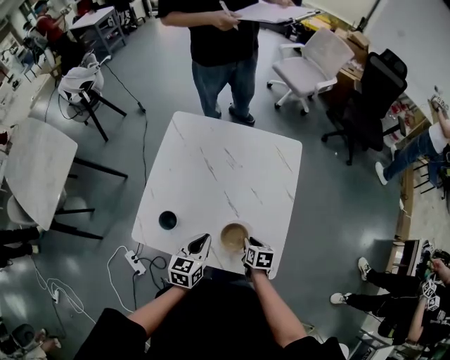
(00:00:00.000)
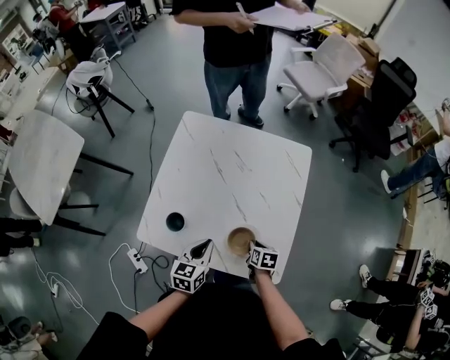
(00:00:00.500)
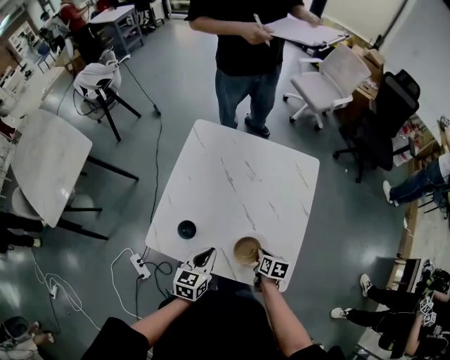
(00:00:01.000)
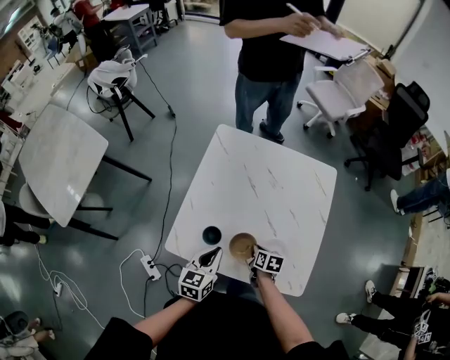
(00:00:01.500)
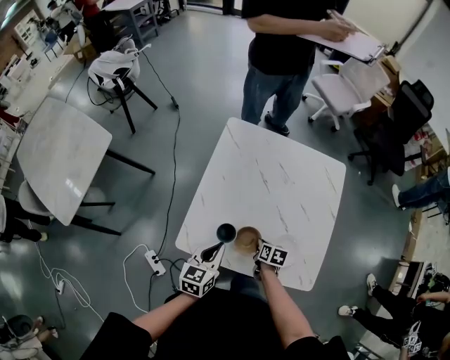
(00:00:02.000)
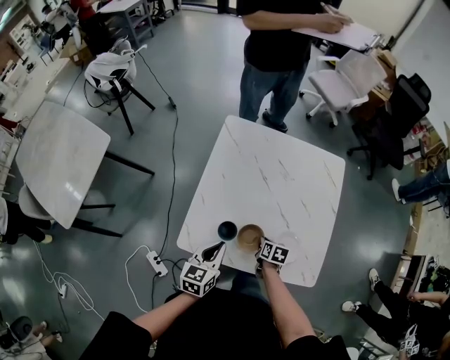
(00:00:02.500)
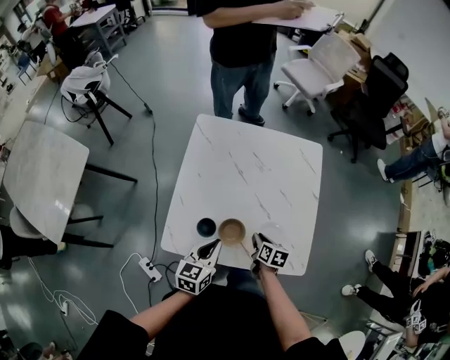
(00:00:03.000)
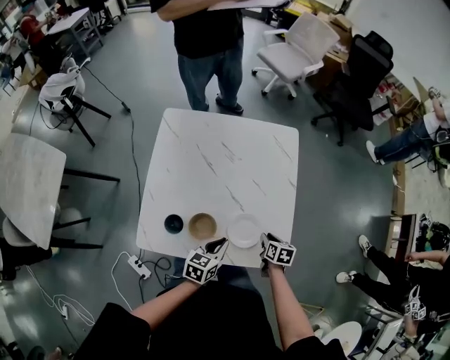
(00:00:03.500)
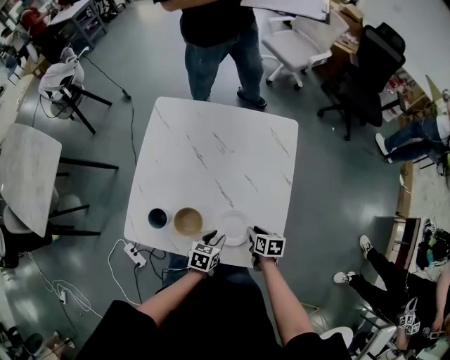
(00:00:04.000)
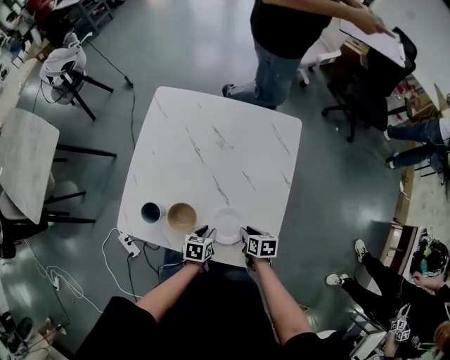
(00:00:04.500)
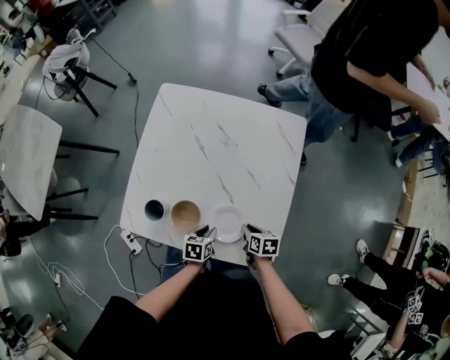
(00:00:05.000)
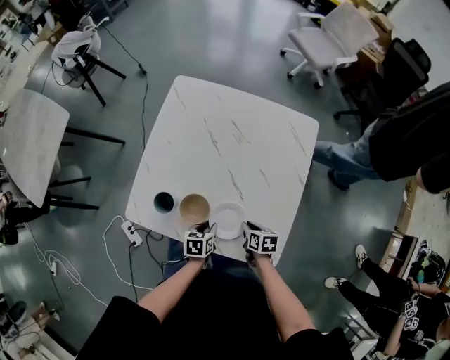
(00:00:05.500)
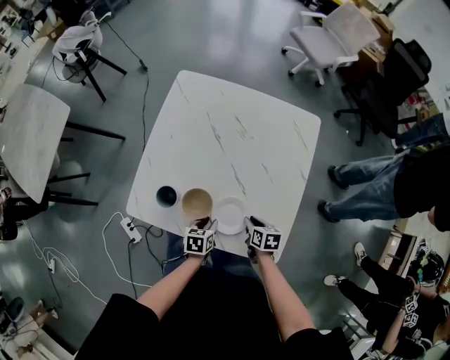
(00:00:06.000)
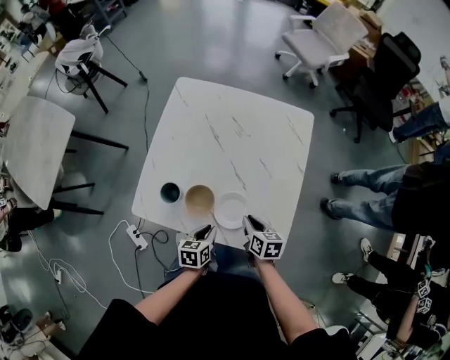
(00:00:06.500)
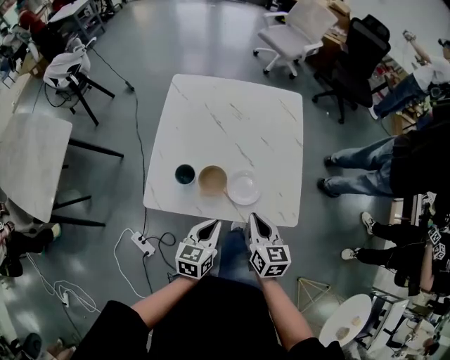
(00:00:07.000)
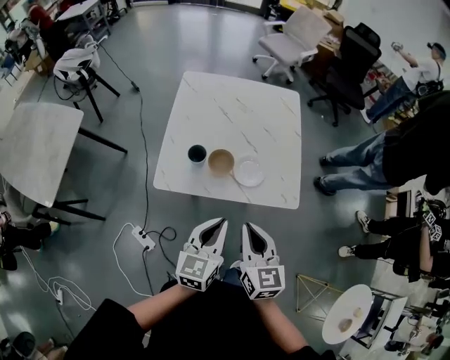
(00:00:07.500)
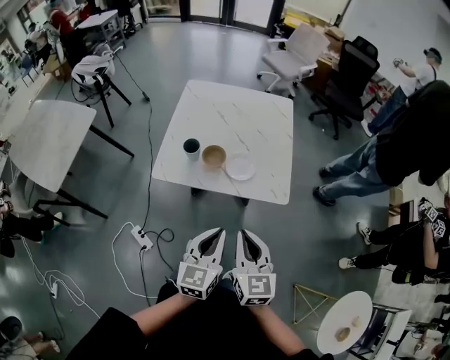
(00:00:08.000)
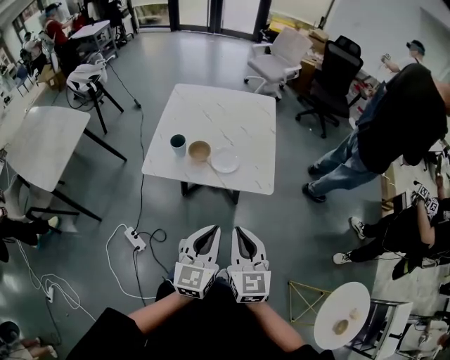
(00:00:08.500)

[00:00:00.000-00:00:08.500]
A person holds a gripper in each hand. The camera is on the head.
00:00:00.000 to 00:00:02.000: The grippers both shift to the left by some 20 cm.
00:00:02.000 to 00:00:04.000: The left gripper shifts approximately 30 cm to the right and downward, turns by roughly 30 degrees, and opens its fingers, while the right gripper is displaced to the right by about 20 cm, and opens.
00:00:04.000 to 00:00:06.500: The left gripper shifts approximately 10 cm to the left, and rotates about 20 degrees. Meanwhile the right gripper goes roughly 10 cm to the left and upward.
00:00:06.500 to 00:00:08.500: The two grippers go some 50 cm backward and upward. The right gripper tilts its fingers roughly 30 degrees upward; the left gripper angles its fingers upward, by roughly 40 degrees.

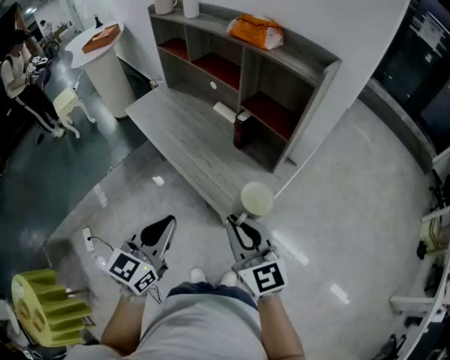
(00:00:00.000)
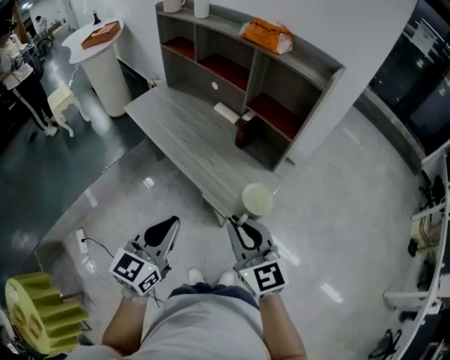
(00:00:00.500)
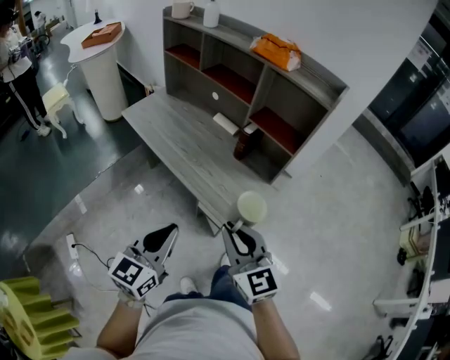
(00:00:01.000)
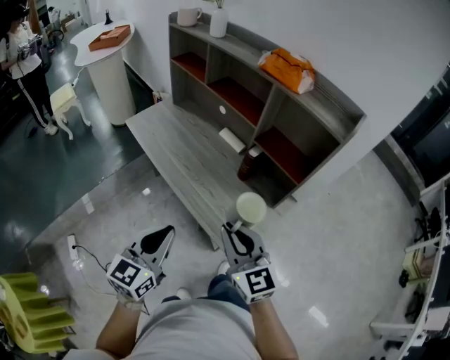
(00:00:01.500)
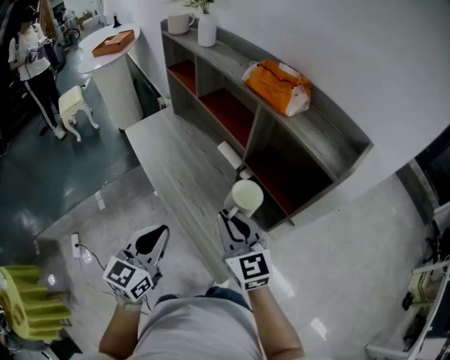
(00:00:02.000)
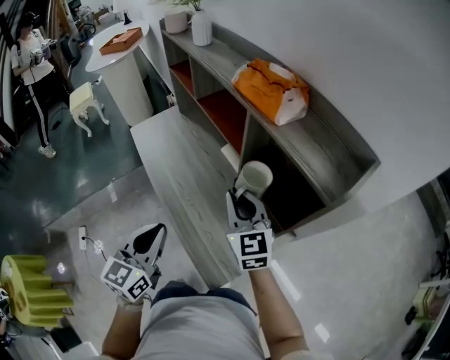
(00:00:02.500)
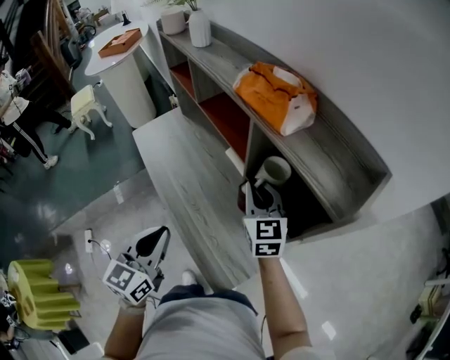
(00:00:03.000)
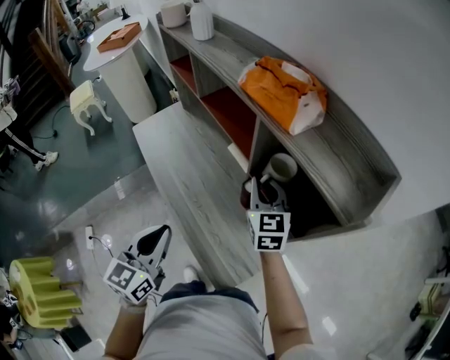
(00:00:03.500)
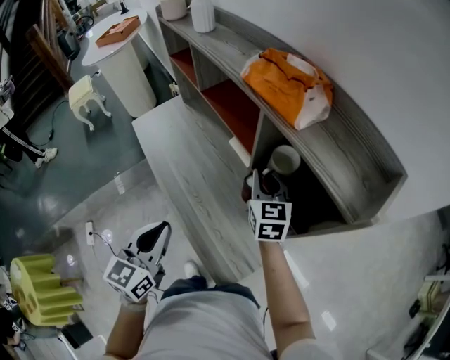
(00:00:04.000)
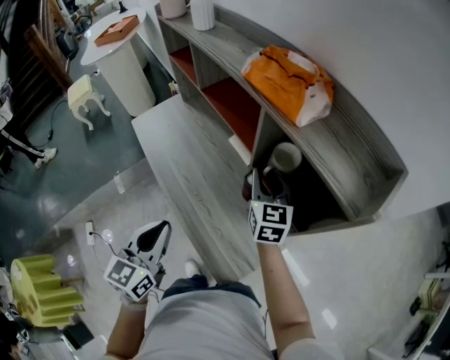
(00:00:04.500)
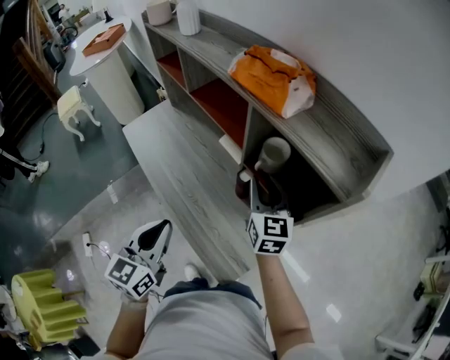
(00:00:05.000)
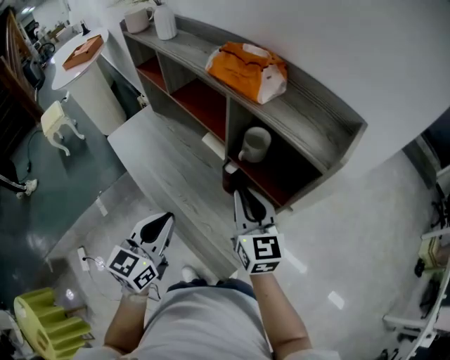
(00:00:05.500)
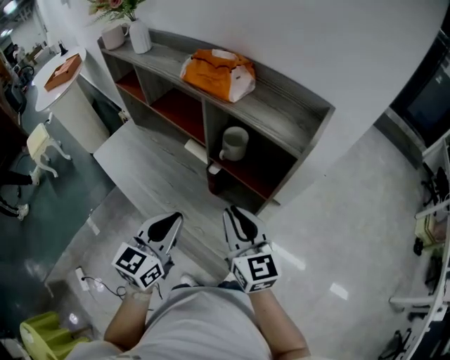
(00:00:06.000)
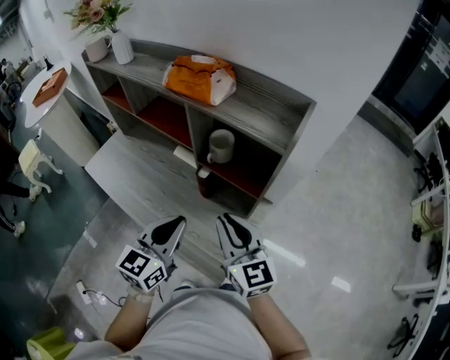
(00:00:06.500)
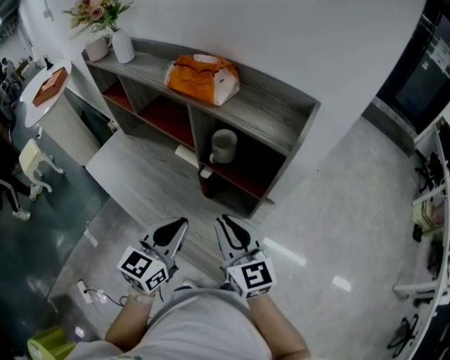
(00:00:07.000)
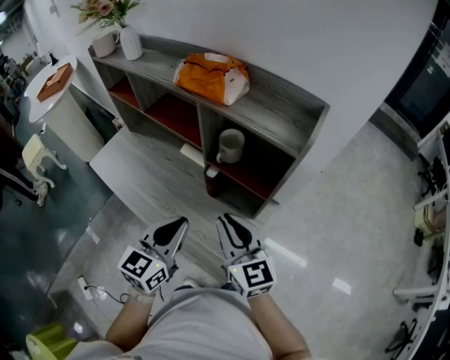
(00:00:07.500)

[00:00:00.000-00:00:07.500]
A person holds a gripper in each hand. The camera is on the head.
00:00:00.000 to 00:00:02.000: The grippers both shift forward by roughly 20 cm.
00:00:02.000 to 00:00:04.000: The right gripper heads forward and to the right, covering roughly 20 cm. Meanwhile the left gripper travels forward by roughly 5 cm.
00:00:04.000 to 00:00:05.500: The right gripper moves backward and upward, roughly 15 cm.
00:00:05.500 to 00:00:07.500: The left gripper moves to the right, some 5 cm; the right gripper goes about 10 cm backward.

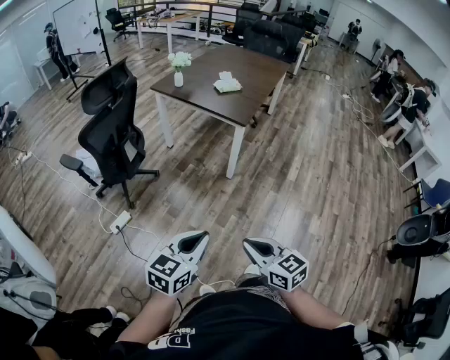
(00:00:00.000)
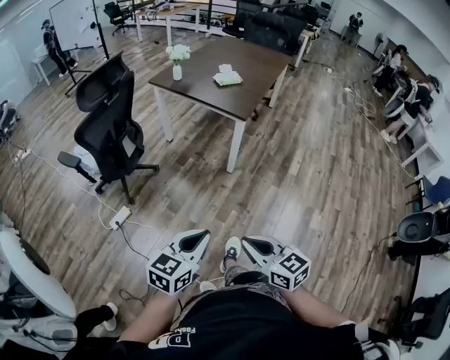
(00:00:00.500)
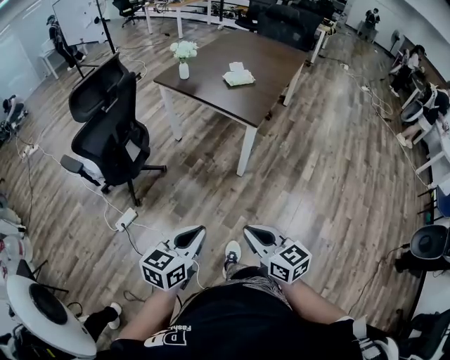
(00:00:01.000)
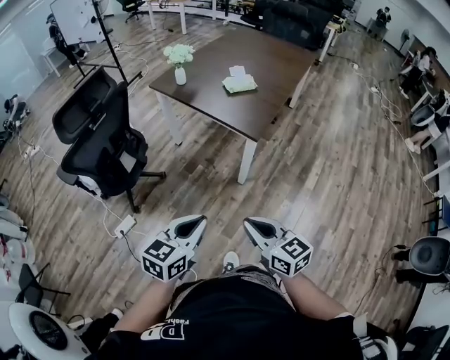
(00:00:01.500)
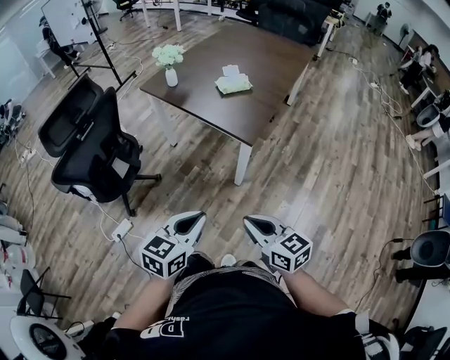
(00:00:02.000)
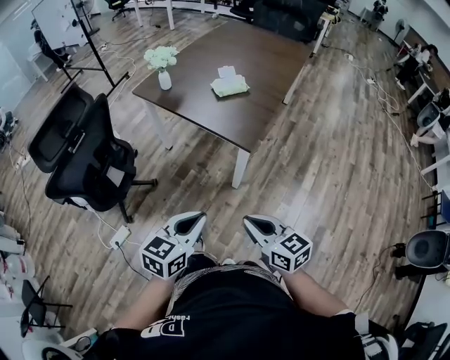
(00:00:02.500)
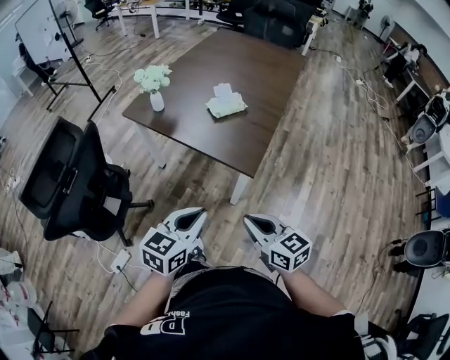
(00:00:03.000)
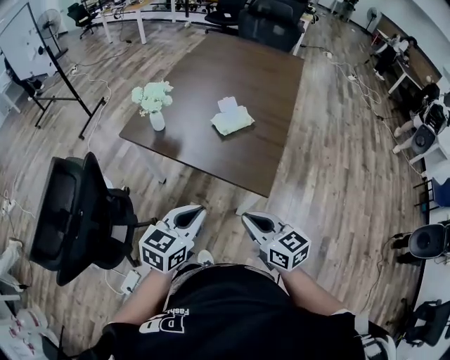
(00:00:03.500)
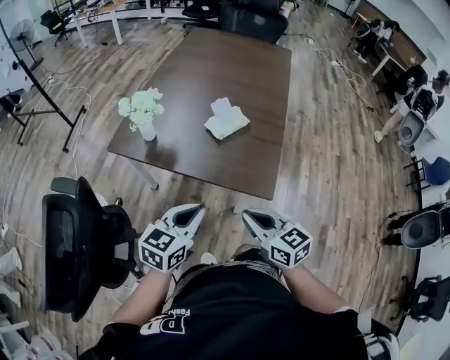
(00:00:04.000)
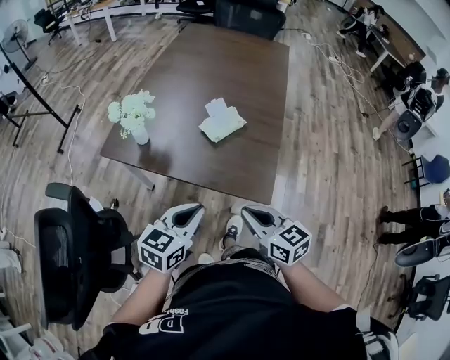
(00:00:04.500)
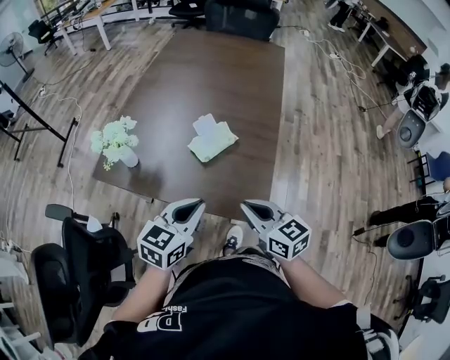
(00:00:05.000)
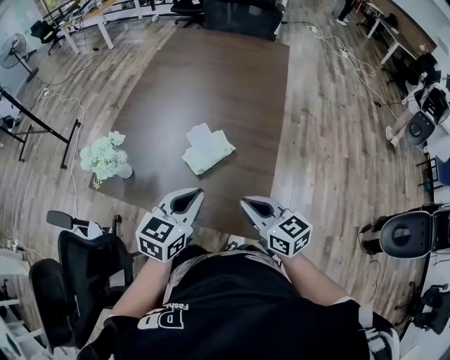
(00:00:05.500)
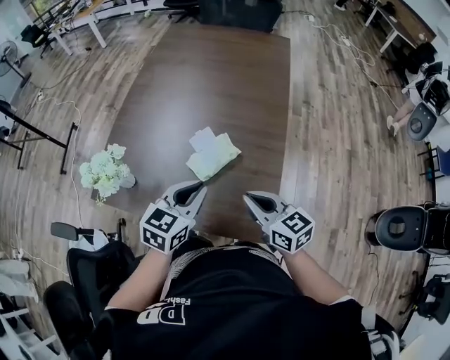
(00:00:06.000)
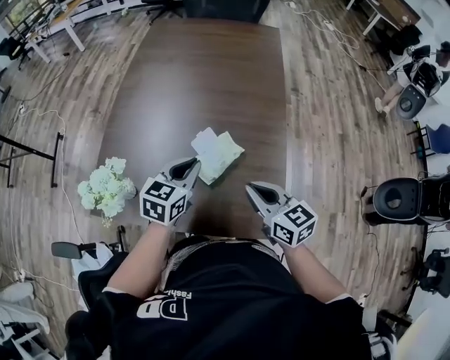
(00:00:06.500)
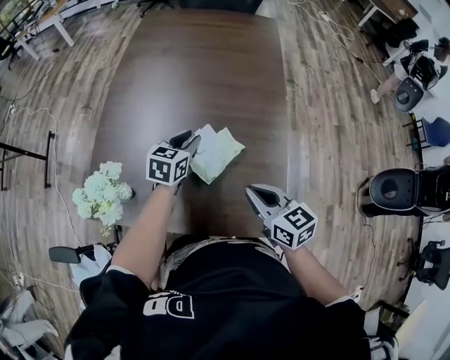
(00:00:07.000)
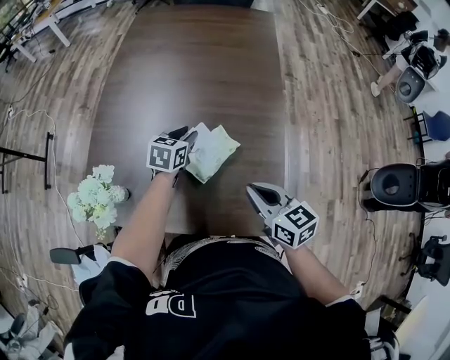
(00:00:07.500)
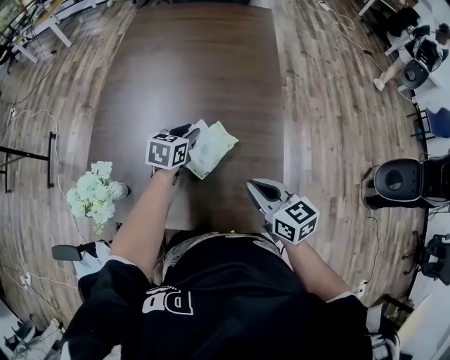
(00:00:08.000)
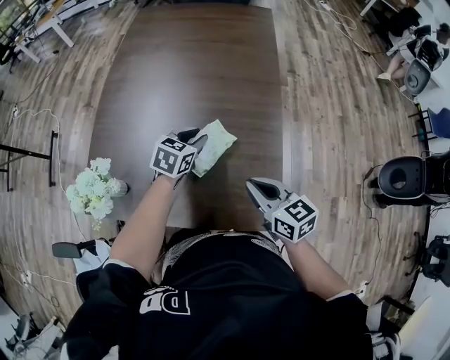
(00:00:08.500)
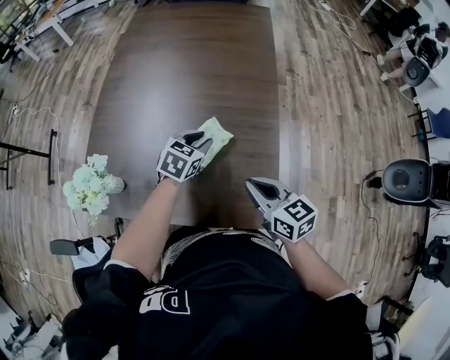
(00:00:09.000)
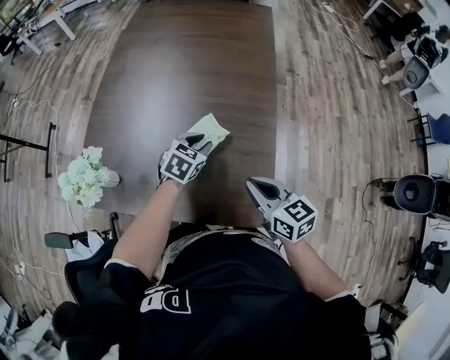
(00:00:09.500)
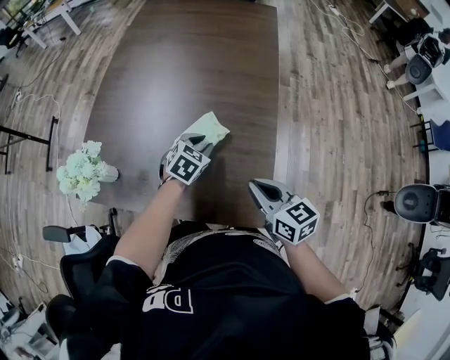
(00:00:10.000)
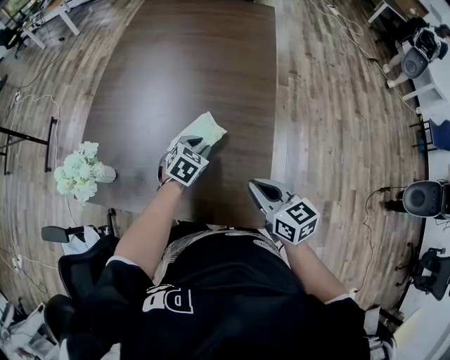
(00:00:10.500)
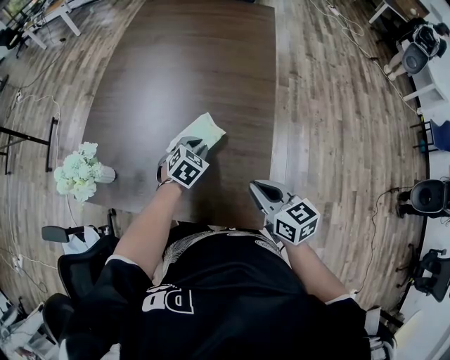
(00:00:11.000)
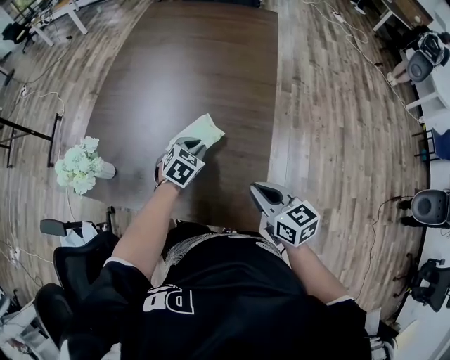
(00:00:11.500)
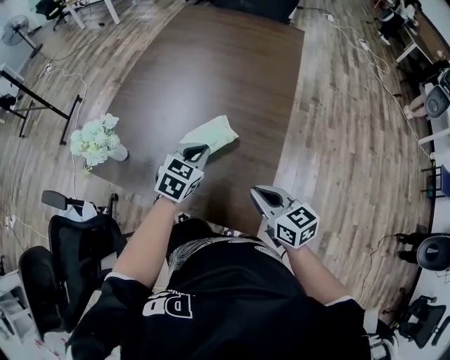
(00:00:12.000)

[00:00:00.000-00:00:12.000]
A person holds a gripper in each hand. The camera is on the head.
00:00:00.000 to 00:00:02.000: The two grippers go approximately 35 cm forward.
00:00:02.000 to 00:00:04.000: The right gripper travels forward and to the left by roughly 35 cm, while the left gripper moves forward, about 35 cm.
00:00:04.000 to 00:00:06.000: Both grippers travel together forward, roughly 25 cm.
00:00:06.000 to 00:00:08.000: The left gripper shifts about 25 cm forward and downward, and opens.
00:00:08.000 to 00:00:10.000: The left gripper heads to the right and backward, covering roughly 10 cm, and turns by roughly 20 degrees; the right gripper changes place by roughly 5 cm.
00:00:10.000 to 00:00:12.000: The left gripper shifts some 10 cm upward and backward, and closes.
